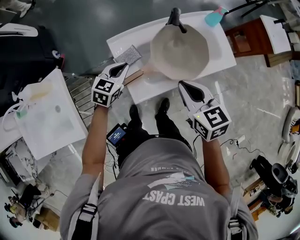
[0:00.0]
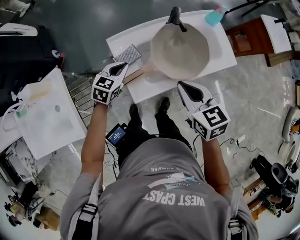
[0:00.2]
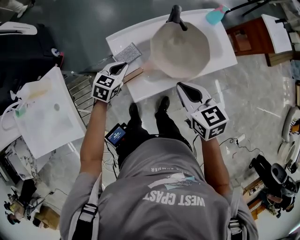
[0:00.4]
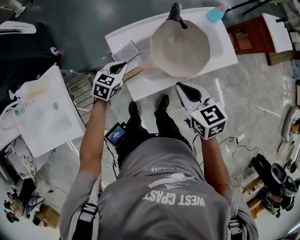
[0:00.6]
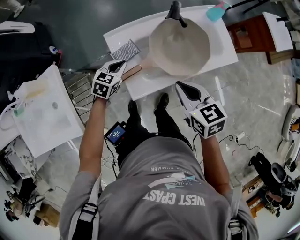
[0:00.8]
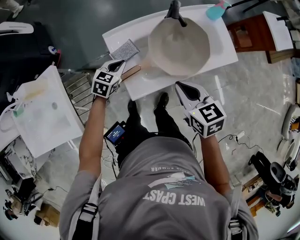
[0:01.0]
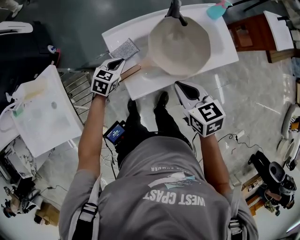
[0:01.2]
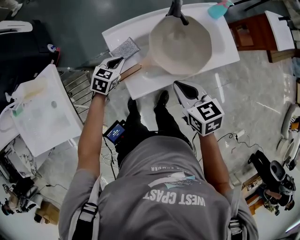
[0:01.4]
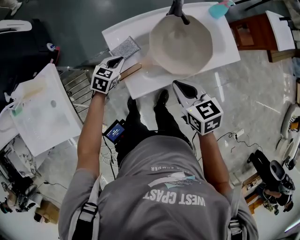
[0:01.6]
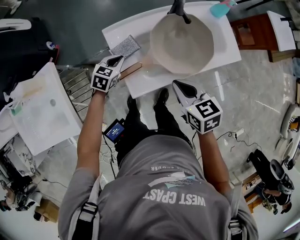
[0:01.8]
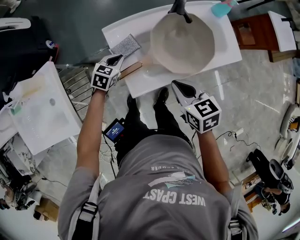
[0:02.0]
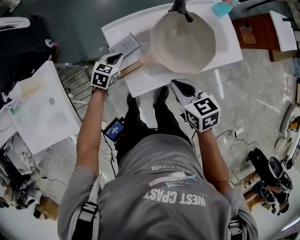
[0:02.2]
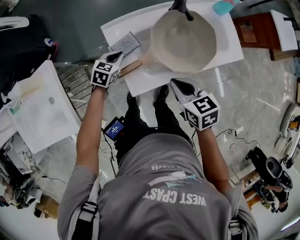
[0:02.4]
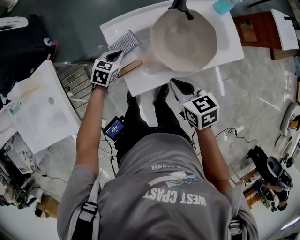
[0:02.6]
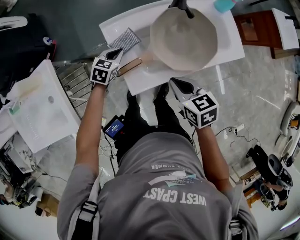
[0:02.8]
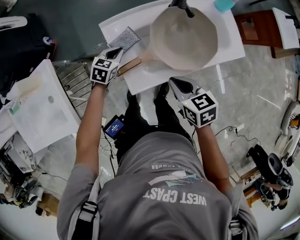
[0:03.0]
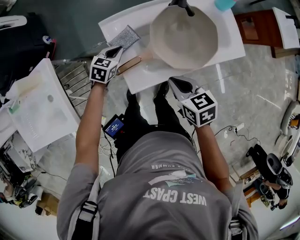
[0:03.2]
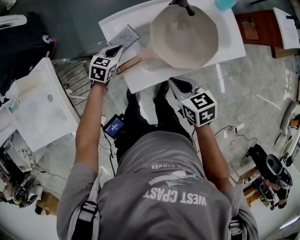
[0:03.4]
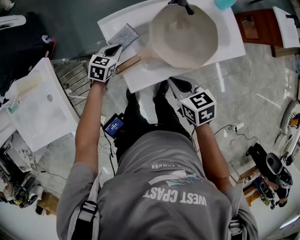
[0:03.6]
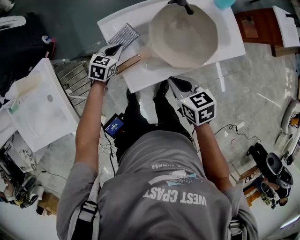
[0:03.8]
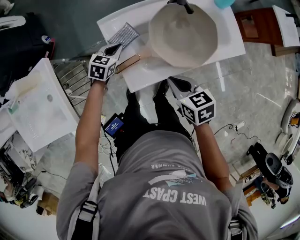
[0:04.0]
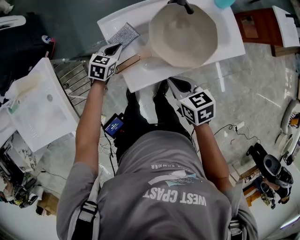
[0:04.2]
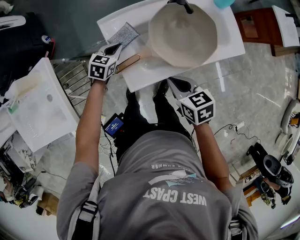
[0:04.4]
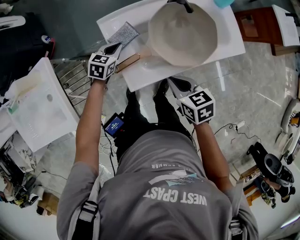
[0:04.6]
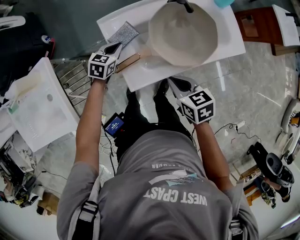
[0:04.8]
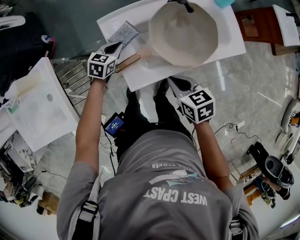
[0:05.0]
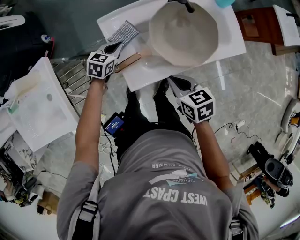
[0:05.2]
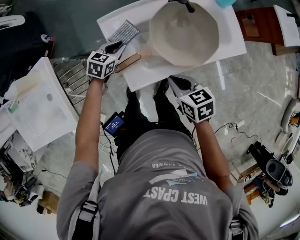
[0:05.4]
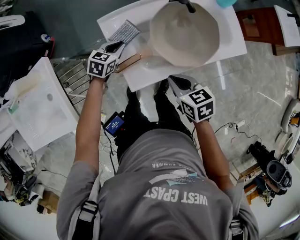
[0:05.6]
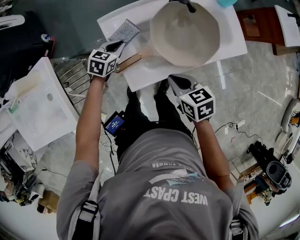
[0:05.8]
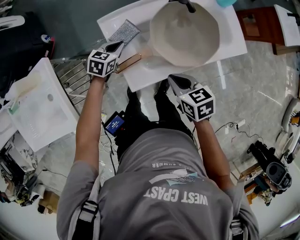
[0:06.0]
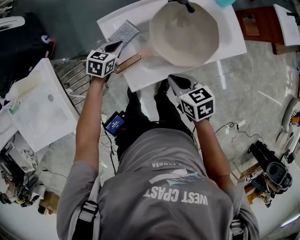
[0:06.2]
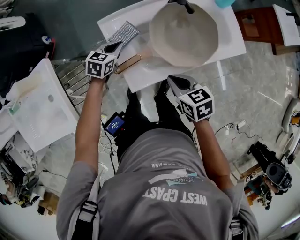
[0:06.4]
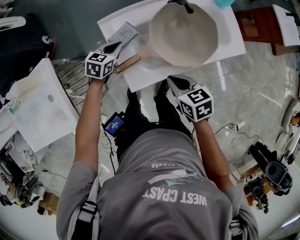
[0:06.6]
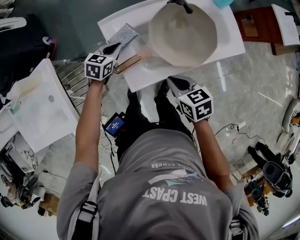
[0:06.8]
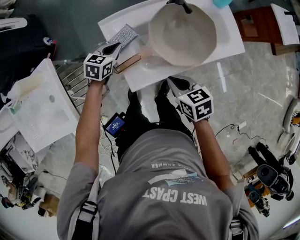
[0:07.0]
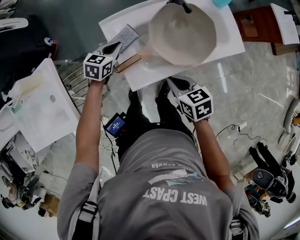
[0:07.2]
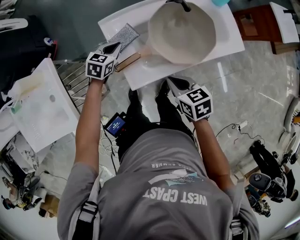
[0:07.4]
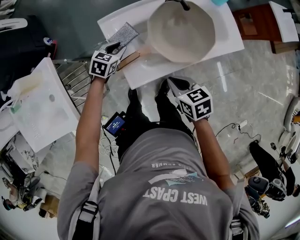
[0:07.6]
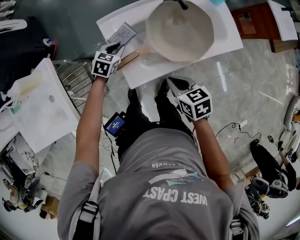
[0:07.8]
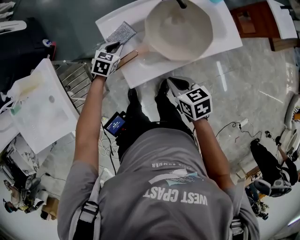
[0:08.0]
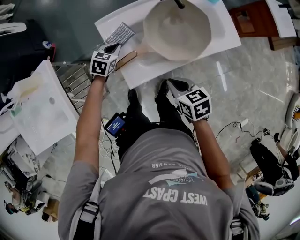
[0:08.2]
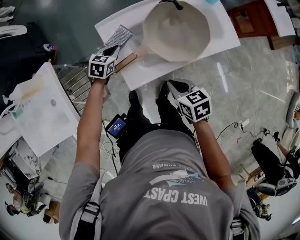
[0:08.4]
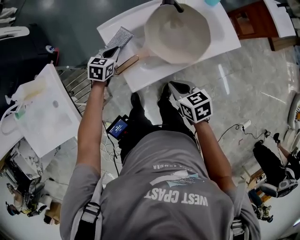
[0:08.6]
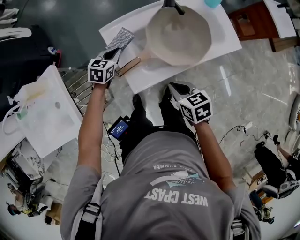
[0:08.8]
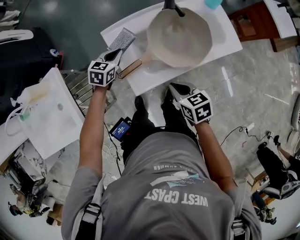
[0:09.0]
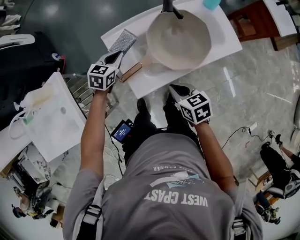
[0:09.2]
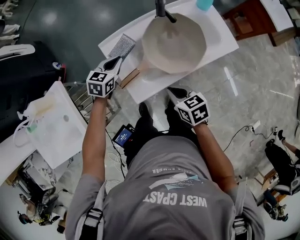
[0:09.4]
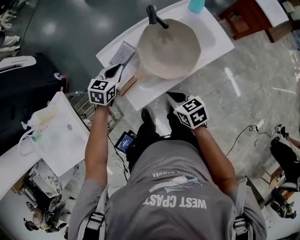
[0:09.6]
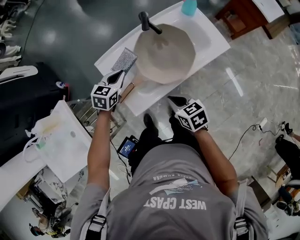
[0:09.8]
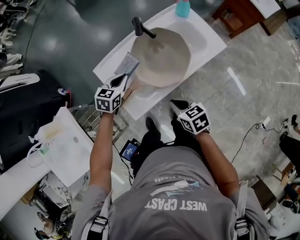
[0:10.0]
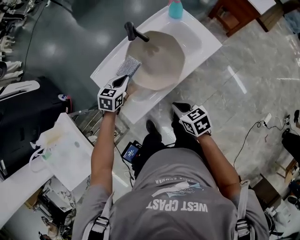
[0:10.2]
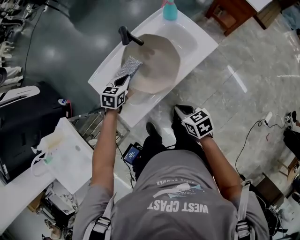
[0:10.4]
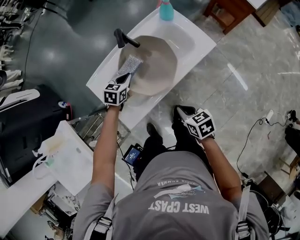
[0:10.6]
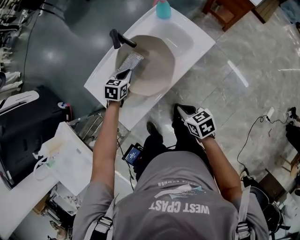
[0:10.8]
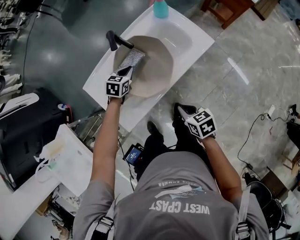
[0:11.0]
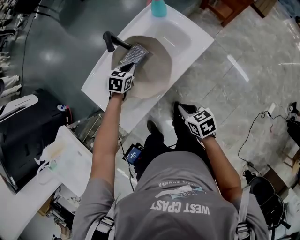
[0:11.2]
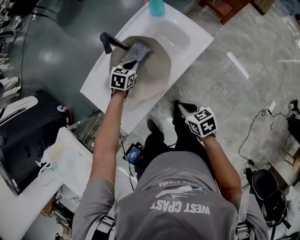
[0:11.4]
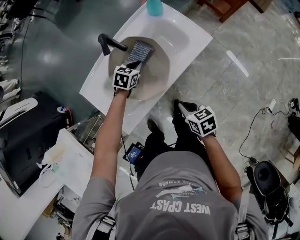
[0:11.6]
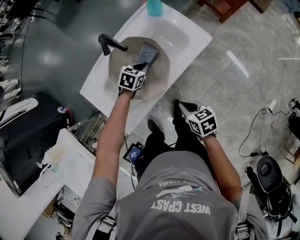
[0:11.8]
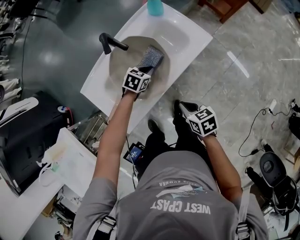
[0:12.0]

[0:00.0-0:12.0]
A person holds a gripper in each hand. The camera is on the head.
0:00.0 to 0:01.6: The grippers both shift downward by approximately 10 cm.
0:01.6 to 0:03.0: The right gripper is displaced downward by approximately 5 cm.
0:03.0 to 0:06.0: The grippers stay close to where they were, moving slightly.
0:06.0 to 0:07.6: The left gripper opens.
0:07.6 to 0:09.0: The left gripper closes.
0:09.0 to 0:10.4: The two grippers go about 15 cm to the right.
0:10.4 to 0:12.0: The left gripper is displaced to the right and downward by approximately 20 cm, and changes its angle by some 20 degrees. Meanwhile the right gripper moves to the right, some 5 cm.

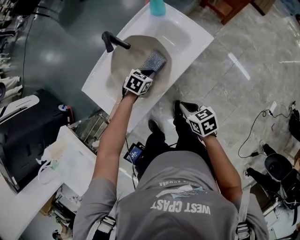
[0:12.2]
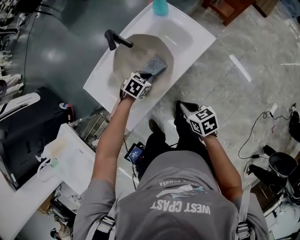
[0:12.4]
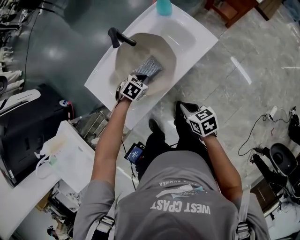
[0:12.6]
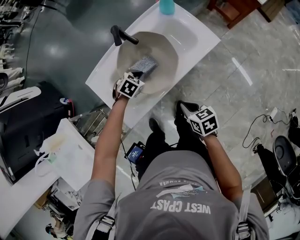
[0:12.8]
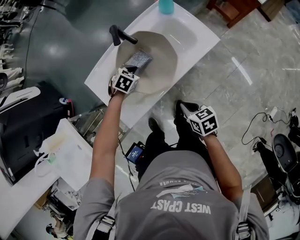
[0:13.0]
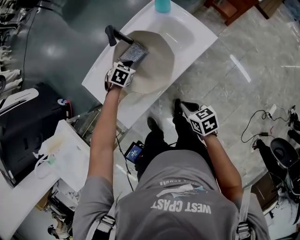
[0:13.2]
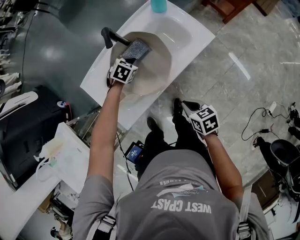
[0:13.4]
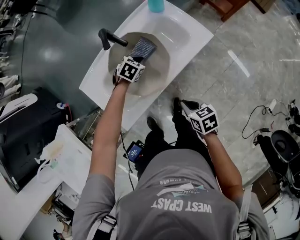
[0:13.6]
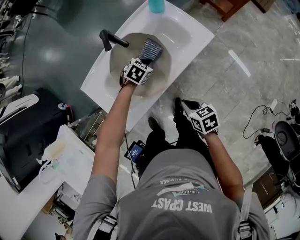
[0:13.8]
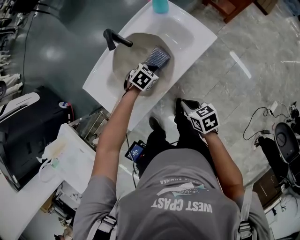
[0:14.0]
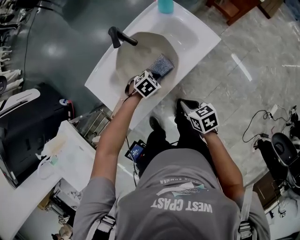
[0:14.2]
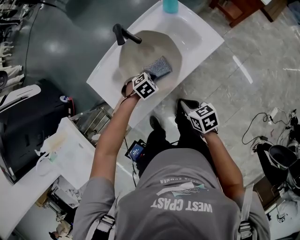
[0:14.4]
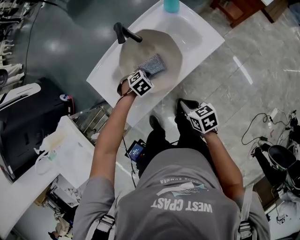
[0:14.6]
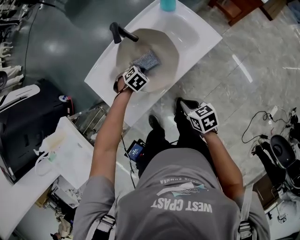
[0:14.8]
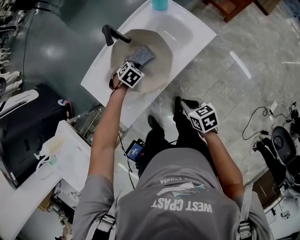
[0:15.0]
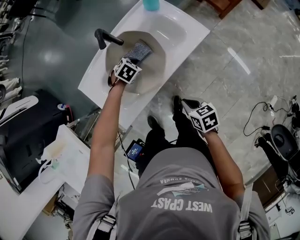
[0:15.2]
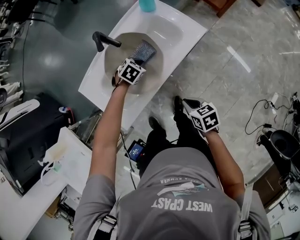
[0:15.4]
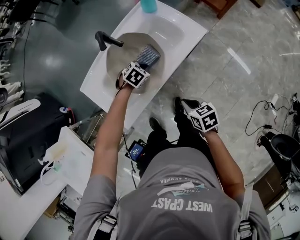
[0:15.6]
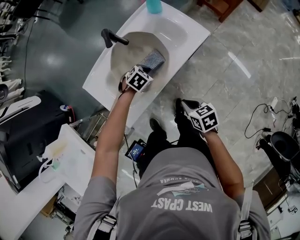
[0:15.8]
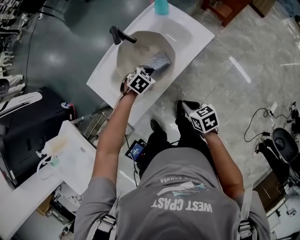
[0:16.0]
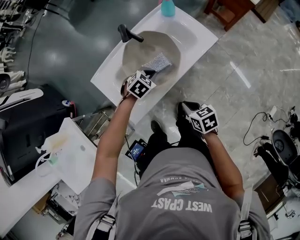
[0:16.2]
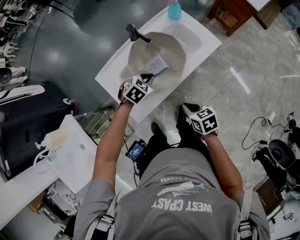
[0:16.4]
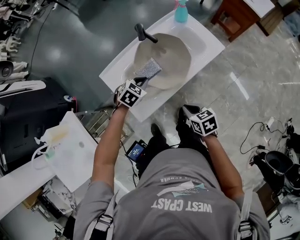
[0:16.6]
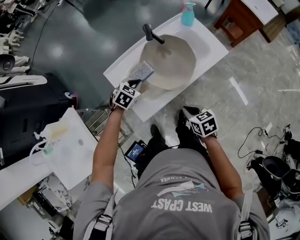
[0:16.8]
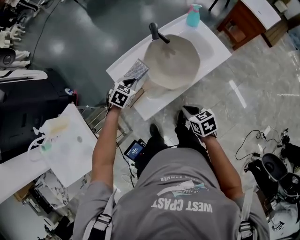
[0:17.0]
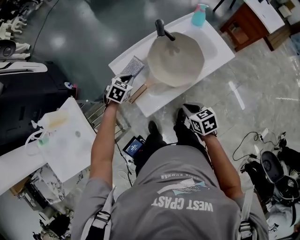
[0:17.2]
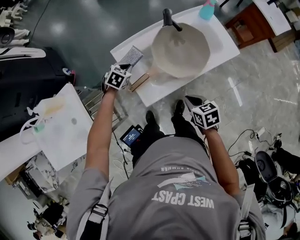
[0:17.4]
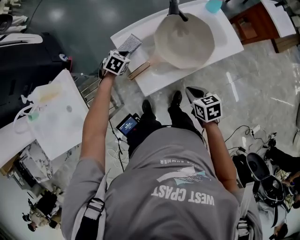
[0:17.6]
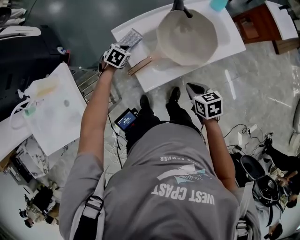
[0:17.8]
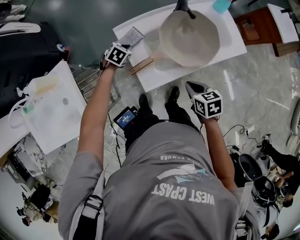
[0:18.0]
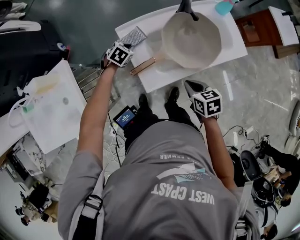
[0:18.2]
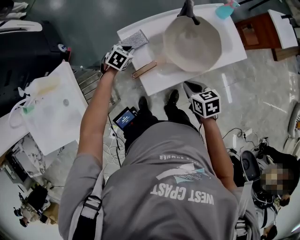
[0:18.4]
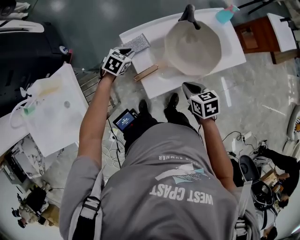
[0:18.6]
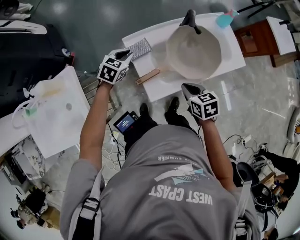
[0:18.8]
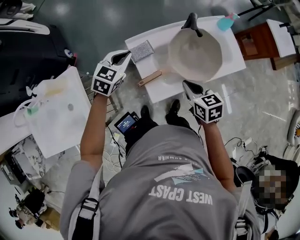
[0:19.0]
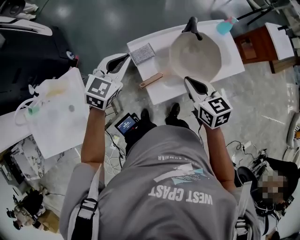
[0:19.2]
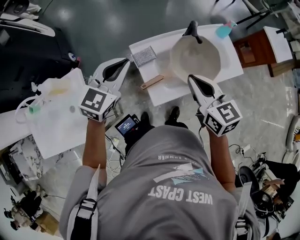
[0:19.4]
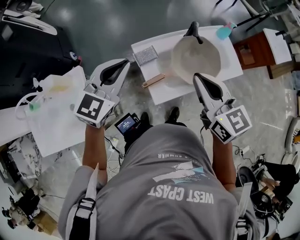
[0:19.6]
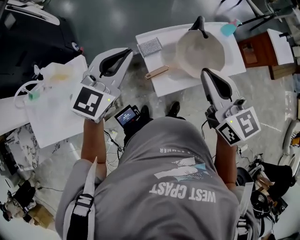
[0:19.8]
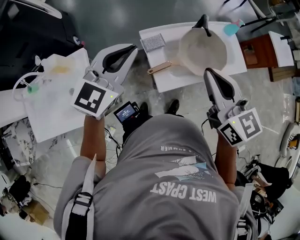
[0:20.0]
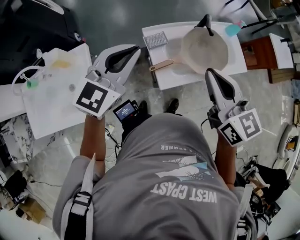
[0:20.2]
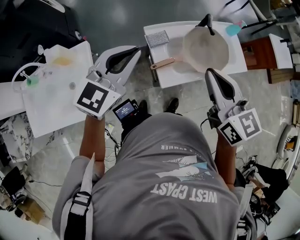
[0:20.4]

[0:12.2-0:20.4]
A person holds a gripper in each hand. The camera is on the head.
0:12.2 to 0:13.8: The left gripper goes to the left and returns, roughly 10 cm each way.
0:15.4 to 0:17.2: The right gripper is displaced to the left and upward by approximately 15 cm; the left gripper is displaced to the left by roughly 25 cm, and rotates about 30 degrees.
0:17.2 to 0:18.8: The left gripper goes about 10 cm to the left, and moves about 10 cm downward and comes back. Meanwhile the right gripper moves to the left and forward, roughly 10 cm.
0:18.8 to 0:20.4: The right gripper goes approximately 30 cm upward, and tips its fingers upward by approximately 40 degrees; the left gripper shifts approximately 35 cm upward and backward, and points its fingers roughly 30 degrees further upward.

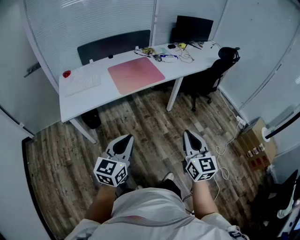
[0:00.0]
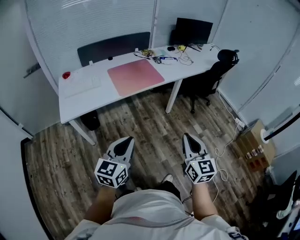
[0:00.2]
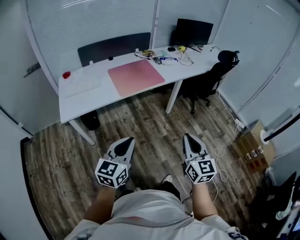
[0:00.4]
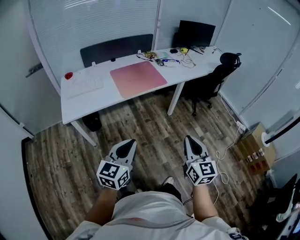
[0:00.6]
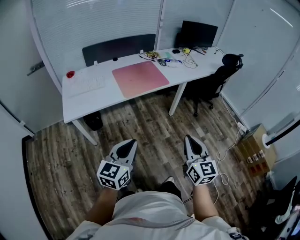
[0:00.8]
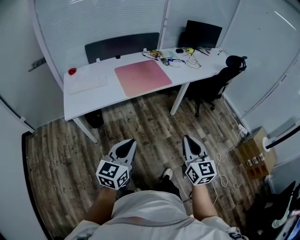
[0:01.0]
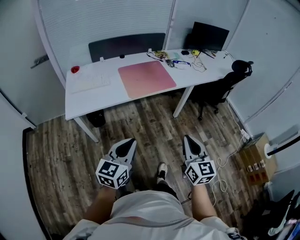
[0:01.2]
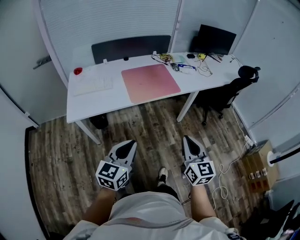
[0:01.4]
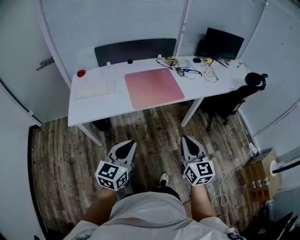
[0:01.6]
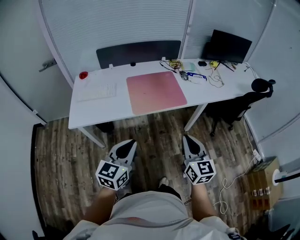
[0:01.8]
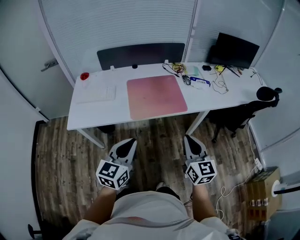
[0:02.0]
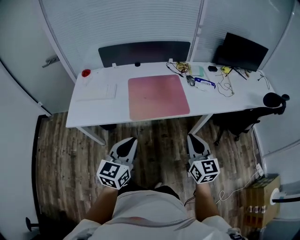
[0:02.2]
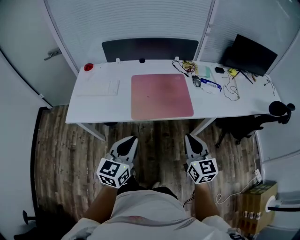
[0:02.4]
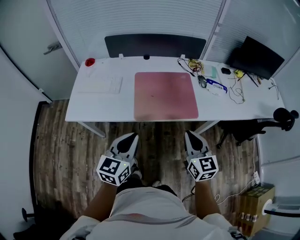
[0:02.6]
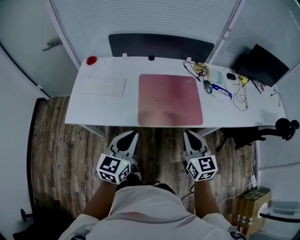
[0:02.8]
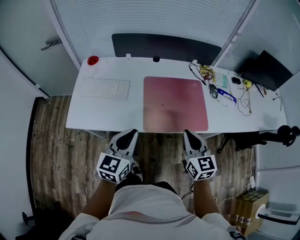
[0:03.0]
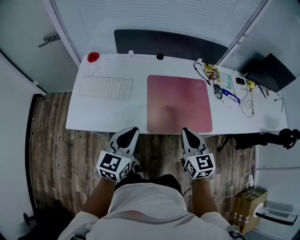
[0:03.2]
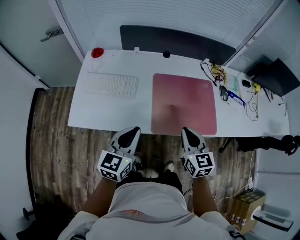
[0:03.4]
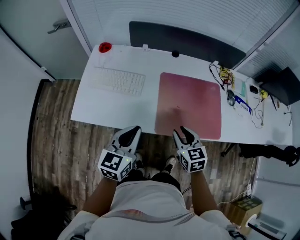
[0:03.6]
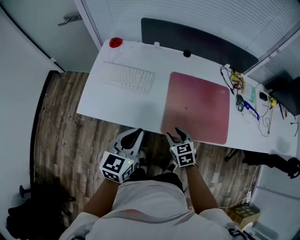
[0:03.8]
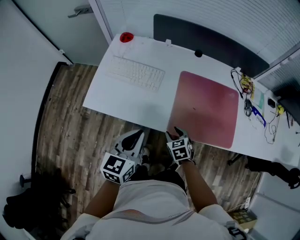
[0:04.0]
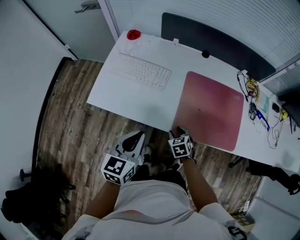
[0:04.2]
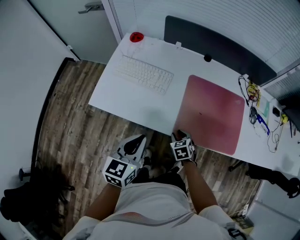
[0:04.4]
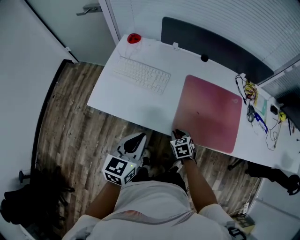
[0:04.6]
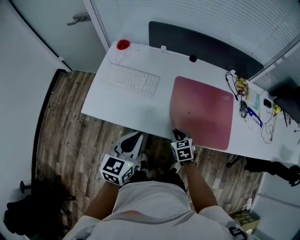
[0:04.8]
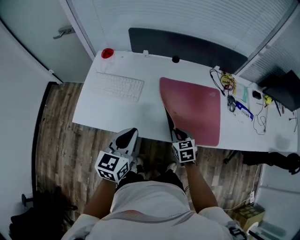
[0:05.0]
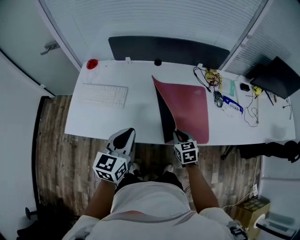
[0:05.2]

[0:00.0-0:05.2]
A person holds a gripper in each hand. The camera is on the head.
0:00.0 to 0:01.8: The grippers both shift forward by about 20 cm.
0:01.8 to 0:03.4: The left gripper goes roughly 30 cm forward, while the right gripper moves forward and to the left, roughly 35 cm, and turns by approximately 20 degrees.
0:03.4 to 0:05.2: The right gripper shifts about 15 cm downward and to the right, and opens, then closes once more. The left gripper heads to the right, covering about 5 cm.
